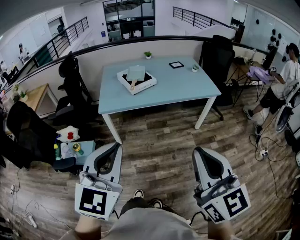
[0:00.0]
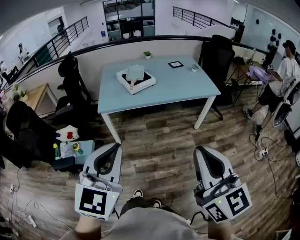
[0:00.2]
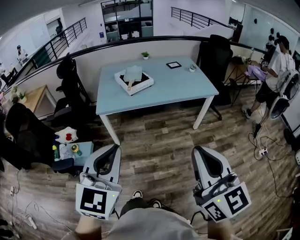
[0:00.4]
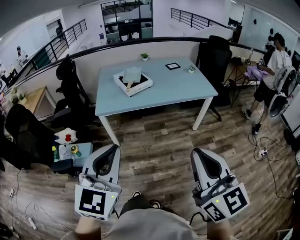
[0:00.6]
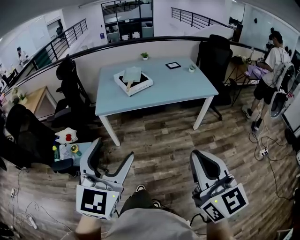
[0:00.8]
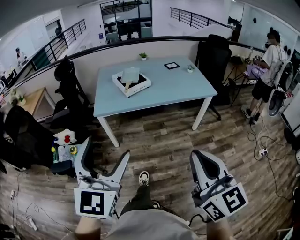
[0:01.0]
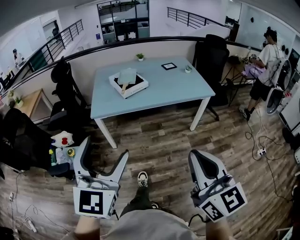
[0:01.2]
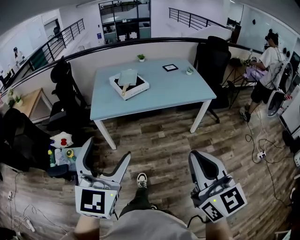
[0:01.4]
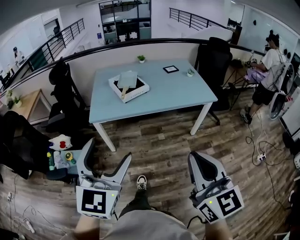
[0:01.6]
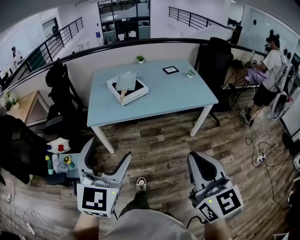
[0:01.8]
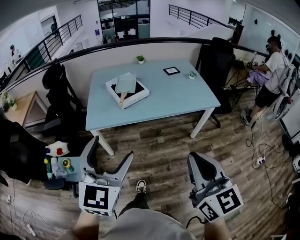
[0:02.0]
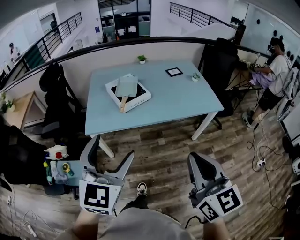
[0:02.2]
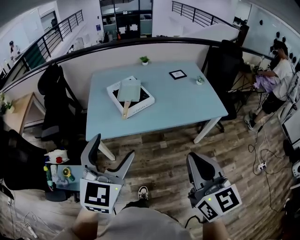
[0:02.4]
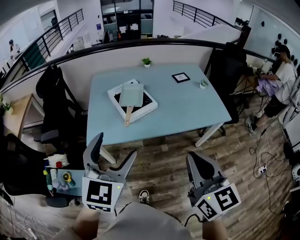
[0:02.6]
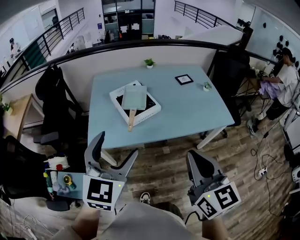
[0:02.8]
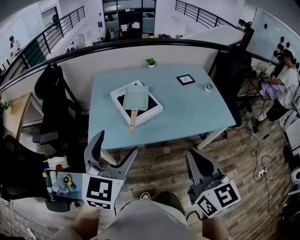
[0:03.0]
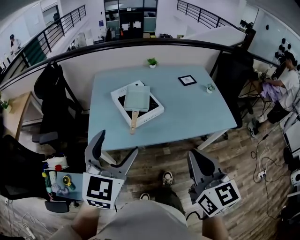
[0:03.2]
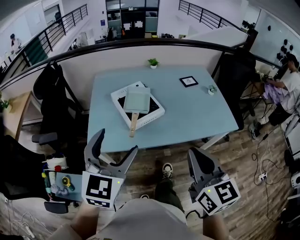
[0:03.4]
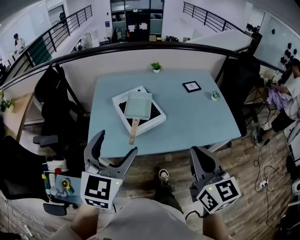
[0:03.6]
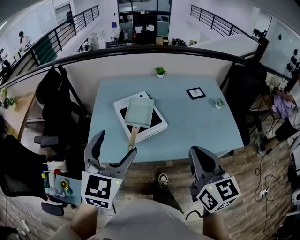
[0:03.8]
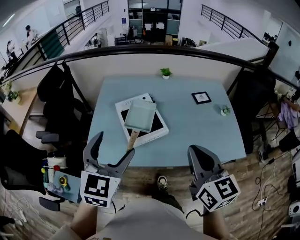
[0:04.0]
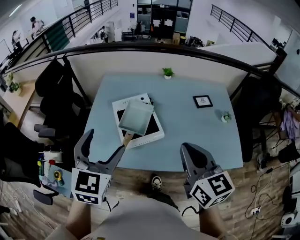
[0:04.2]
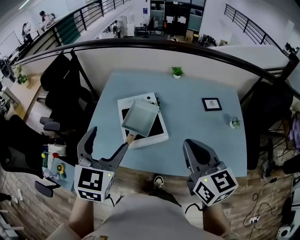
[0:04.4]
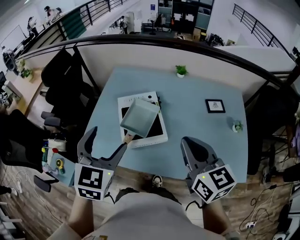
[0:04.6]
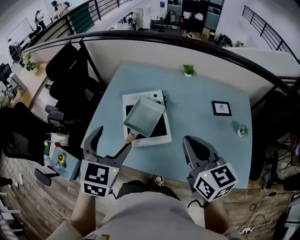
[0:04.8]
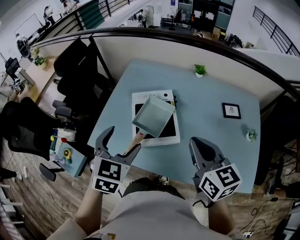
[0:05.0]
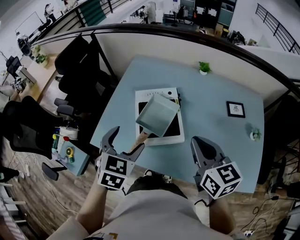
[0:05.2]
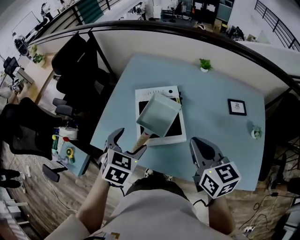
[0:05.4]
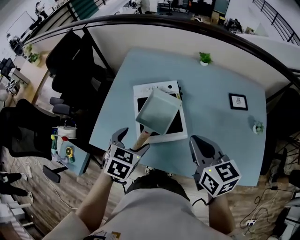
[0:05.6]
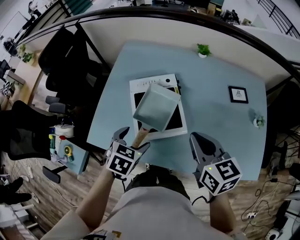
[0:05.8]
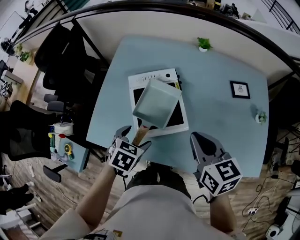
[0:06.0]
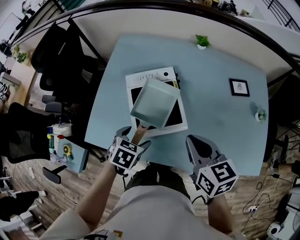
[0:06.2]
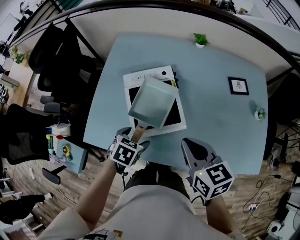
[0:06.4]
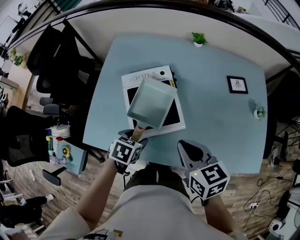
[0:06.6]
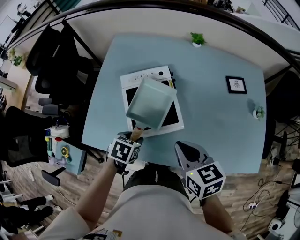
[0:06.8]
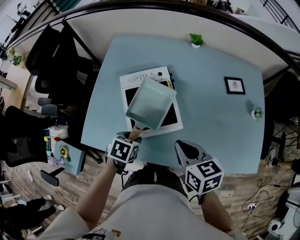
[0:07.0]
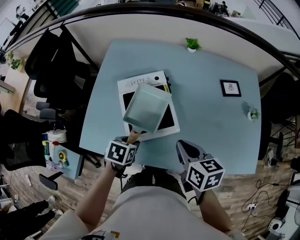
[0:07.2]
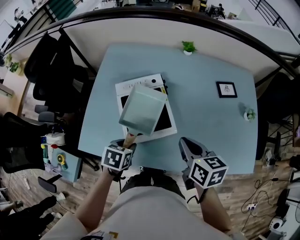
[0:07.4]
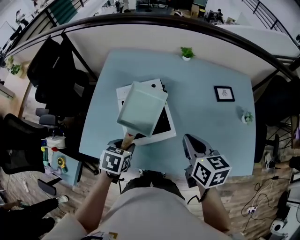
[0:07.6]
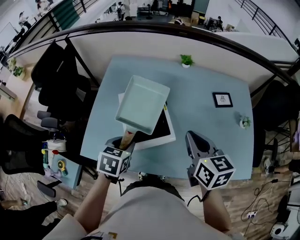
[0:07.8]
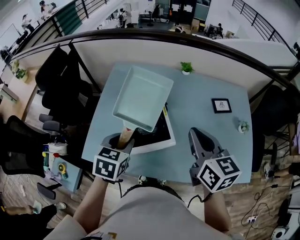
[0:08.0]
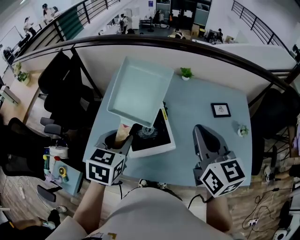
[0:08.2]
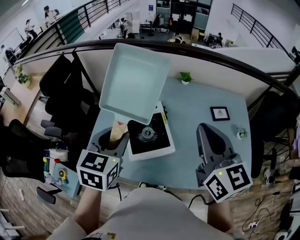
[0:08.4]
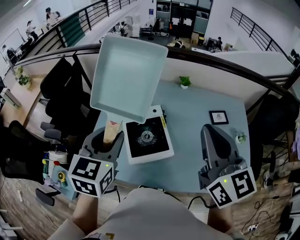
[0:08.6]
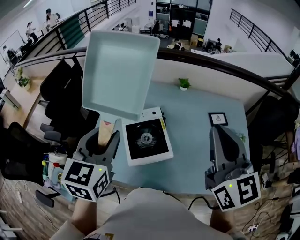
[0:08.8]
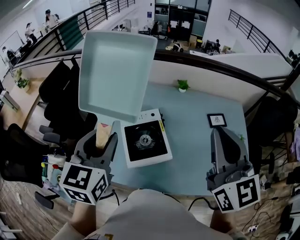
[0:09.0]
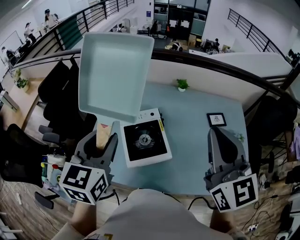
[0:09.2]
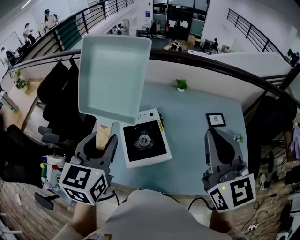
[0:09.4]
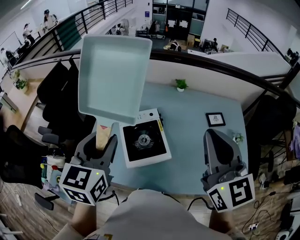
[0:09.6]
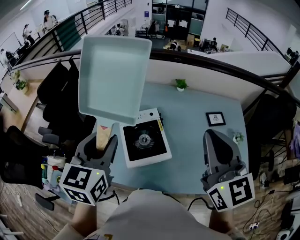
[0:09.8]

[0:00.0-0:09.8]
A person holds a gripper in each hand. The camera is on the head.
0:00.0 to 0:01.4: The right gripper changes place by roughly 5 cm, while the left gripper moves forward, about 5 cm, and opens its fingers.
0:01.4 to 0:02.8: The grippers both shift forward by roughly 35 cm.
0:02.8 to 0:04.2: Both grippers travel together forward, about 25 cm.
0:04.2 to 0:05.6: The right gripper goes approximately 20 cm forward and downward, and swivels approximately 20 degrees. Meanwhile the left gripper heads downward and forward, covering about 25 cm, and points its fingers approximately 30 degrees further downward.
0:05.6 to 0:07.0: The grippers both shift downward by roughly 10 cm. The left gripper rotates approximately 20 degrees, and closes up.
0:07.0 to 0:08.4: The two grippers go some 30 cm upward. The right gripper points its fingers roughly 30 degrees further upward. The left gripper points its fingers roughly 40 degrees further upward.
0:08.4 to 0:09.8: The left gripper goes some 5 cm upward.

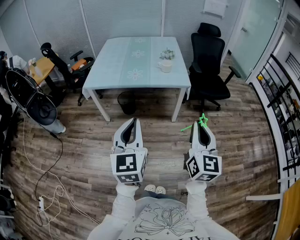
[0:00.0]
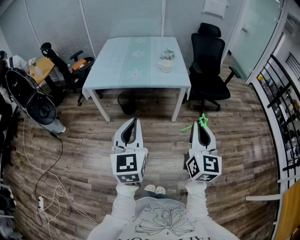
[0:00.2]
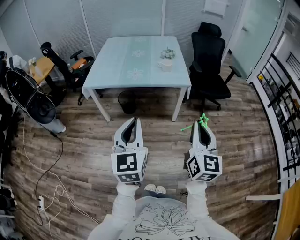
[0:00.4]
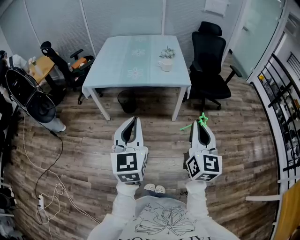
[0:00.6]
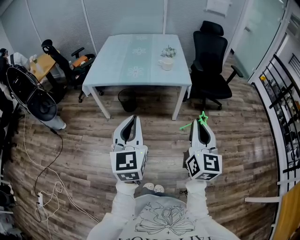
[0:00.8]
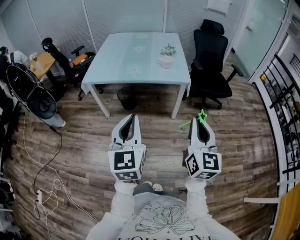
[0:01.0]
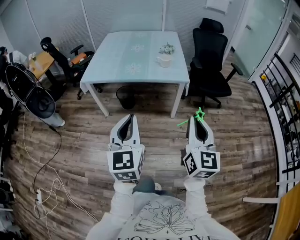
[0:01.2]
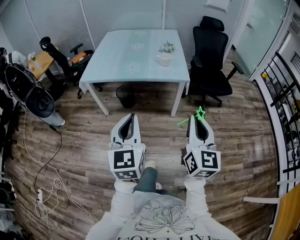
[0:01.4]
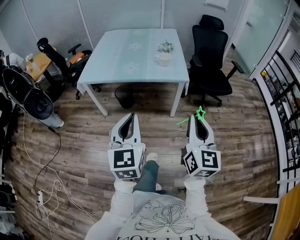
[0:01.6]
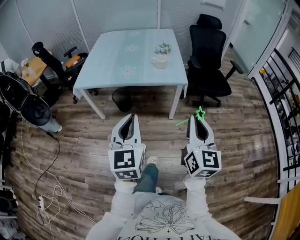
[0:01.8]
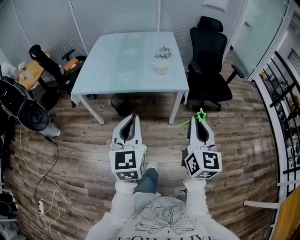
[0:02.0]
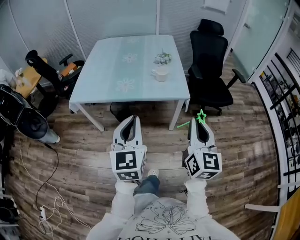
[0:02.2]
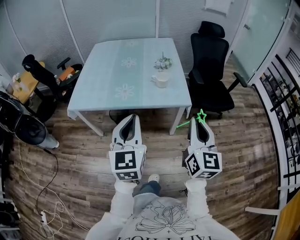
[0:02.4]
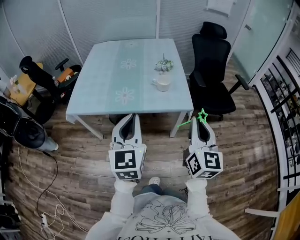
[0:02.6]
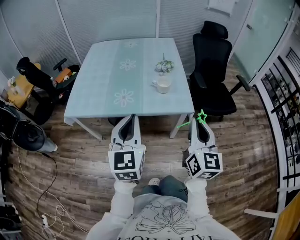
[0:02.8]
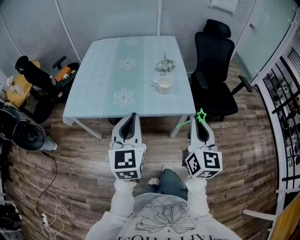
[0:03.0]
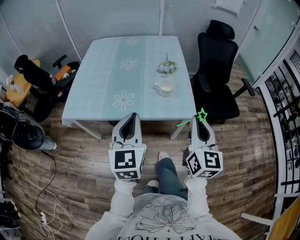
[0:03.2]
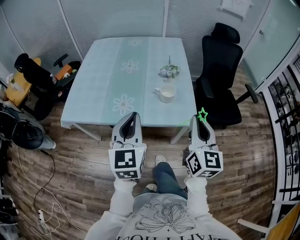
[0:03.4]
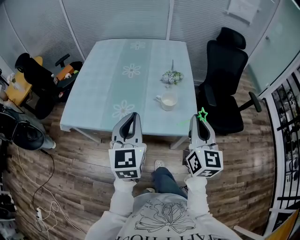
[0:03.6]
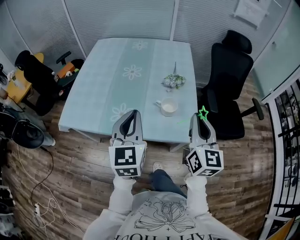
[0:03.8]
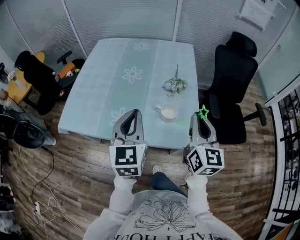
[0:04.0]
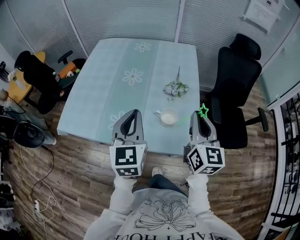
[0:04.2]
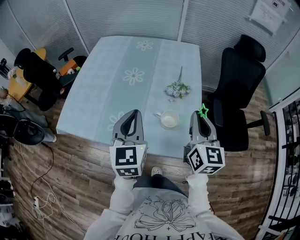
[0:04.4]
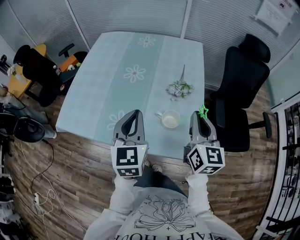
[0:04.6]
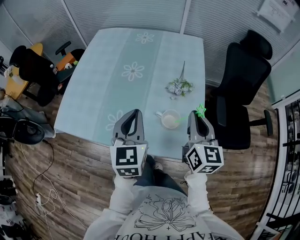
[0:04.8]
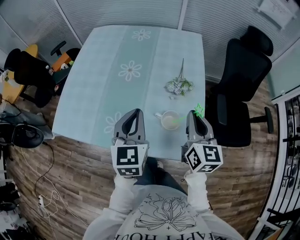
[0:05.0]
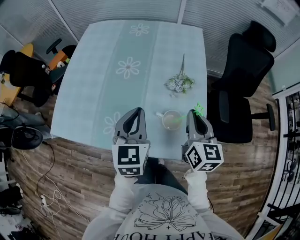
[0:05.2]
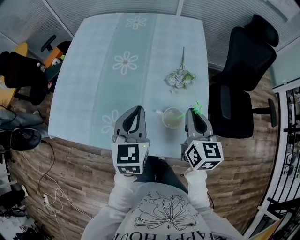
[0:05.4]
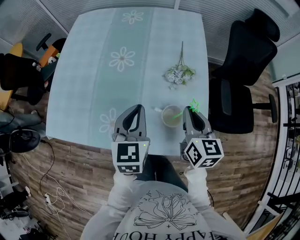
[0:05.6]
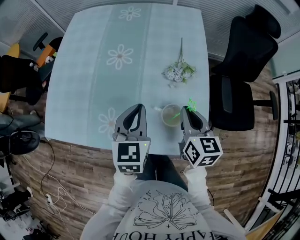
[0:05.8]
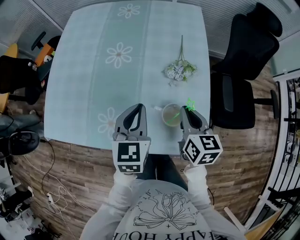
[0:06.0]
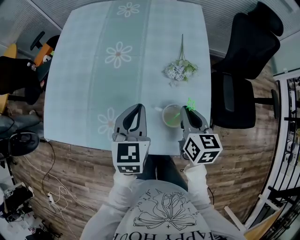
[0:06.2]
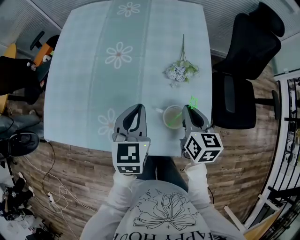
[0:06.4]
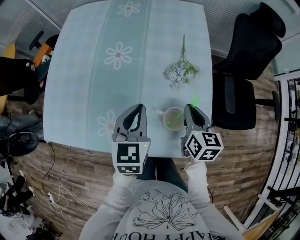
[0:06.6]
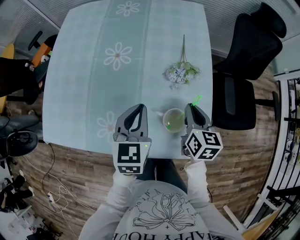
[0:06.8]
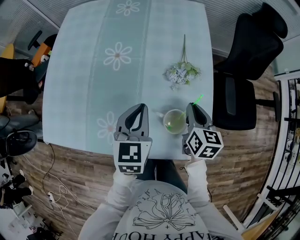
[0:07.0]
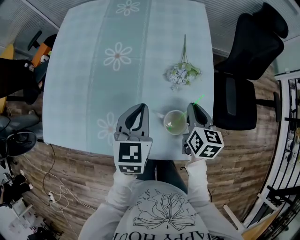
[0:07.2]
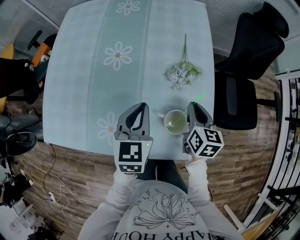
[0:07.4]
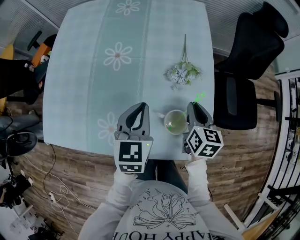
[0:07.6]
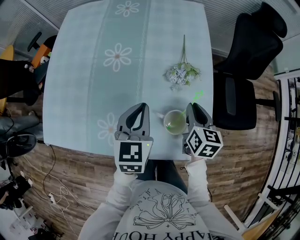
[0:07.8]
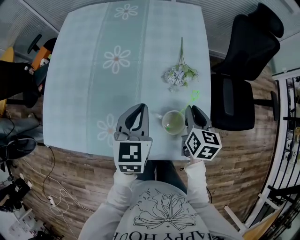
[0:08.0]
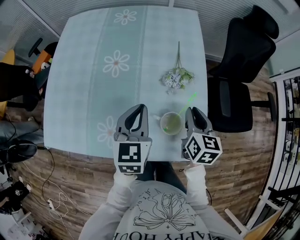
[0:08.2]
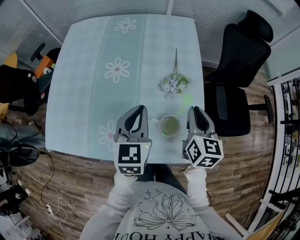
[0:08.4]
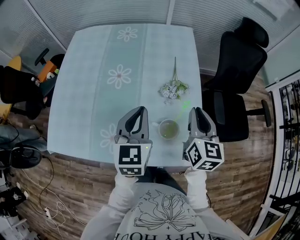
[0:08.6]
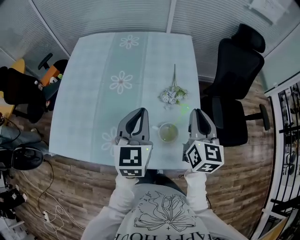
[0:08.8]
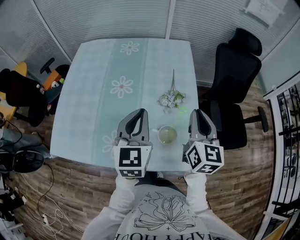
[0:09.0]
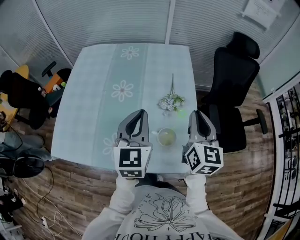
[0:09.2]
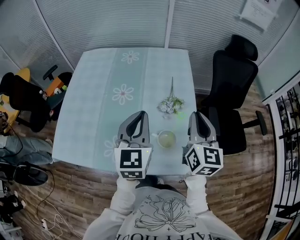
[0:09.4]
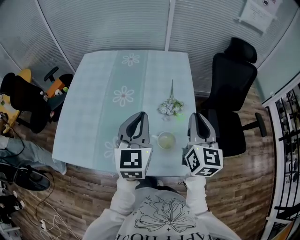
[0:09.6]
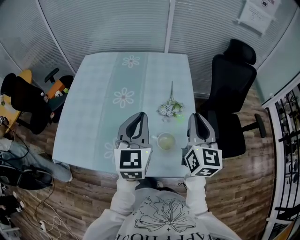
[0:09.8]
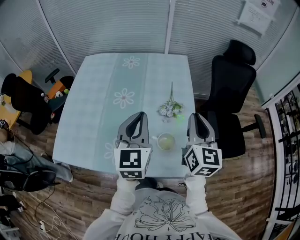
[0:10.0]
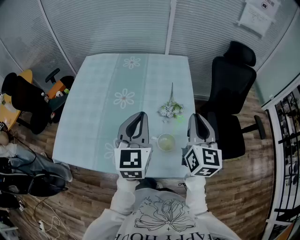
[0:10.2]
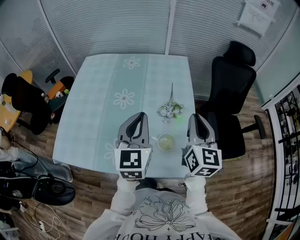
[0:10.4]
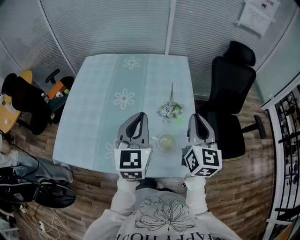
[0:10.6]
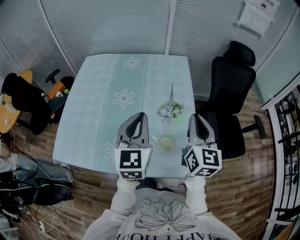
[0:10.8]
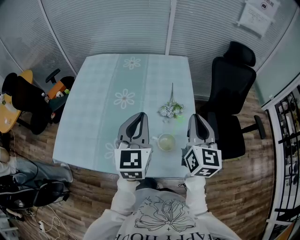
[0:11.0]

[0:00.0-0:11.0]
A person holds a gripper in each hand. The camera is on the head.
0:00.0 to 0:01.6: The right gripper moves some 5 cm. The left gripper changes place by some 5 cm.
0:01.6 to 0:03.2: The grippers both shift forward by some 40 cm.
0:03.2 to 0:04.8: The grippers both shift forward by some 35 cm.
0:04.8 to 0:06.2: The grippers both shift downward and forward by approximately 15 cm. The right gripper turns by approximately 20 degrees.
0:06.2 to 0:07.8: The right gripper ends up approximately 5 cm from where it was.
0:07.8 to 0:09.4: Both grippers move upward, some 20 cm. The left gripper turns by roughly 20 degrees. The right gripper rotates about 30 degrees.
0:09.4 to 0:11.0: There are only small adjustments of the grippers.

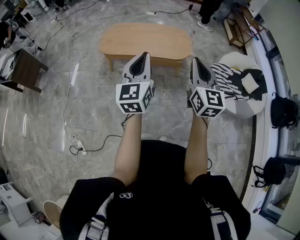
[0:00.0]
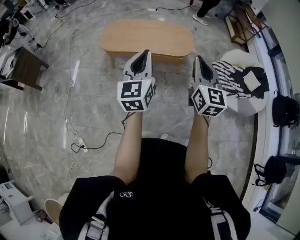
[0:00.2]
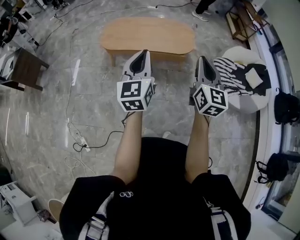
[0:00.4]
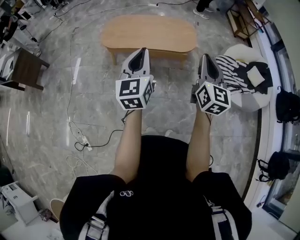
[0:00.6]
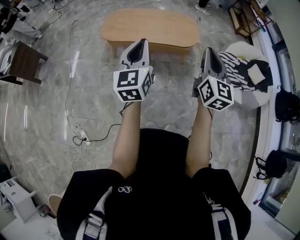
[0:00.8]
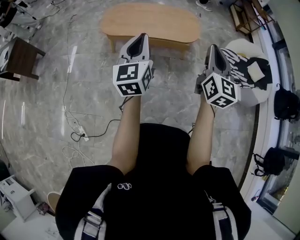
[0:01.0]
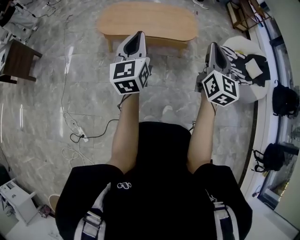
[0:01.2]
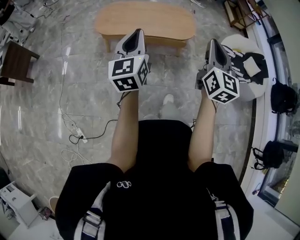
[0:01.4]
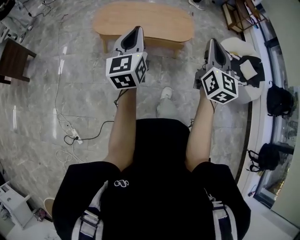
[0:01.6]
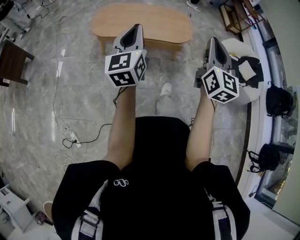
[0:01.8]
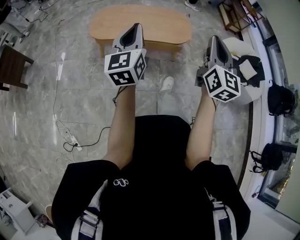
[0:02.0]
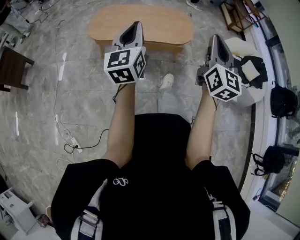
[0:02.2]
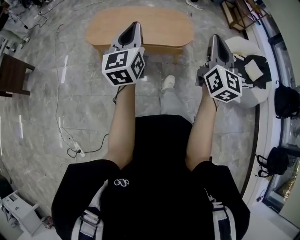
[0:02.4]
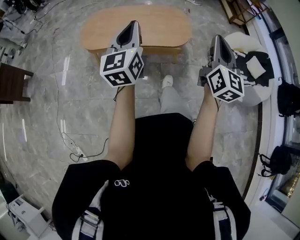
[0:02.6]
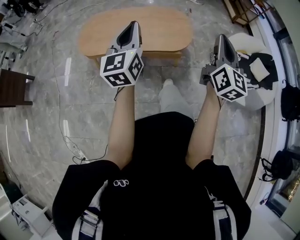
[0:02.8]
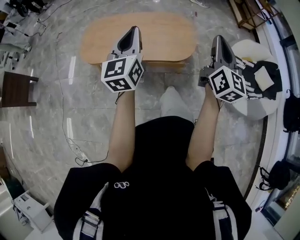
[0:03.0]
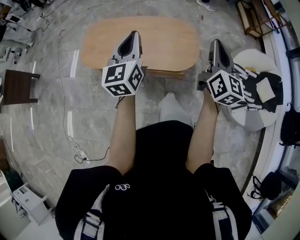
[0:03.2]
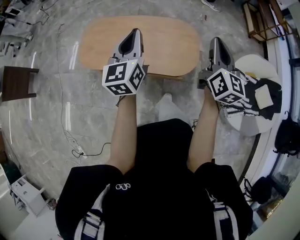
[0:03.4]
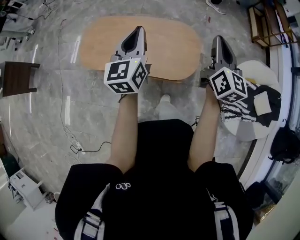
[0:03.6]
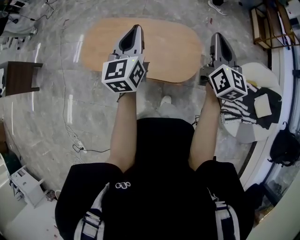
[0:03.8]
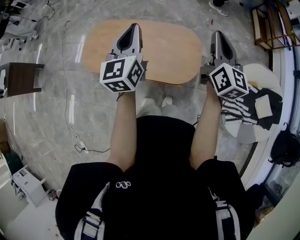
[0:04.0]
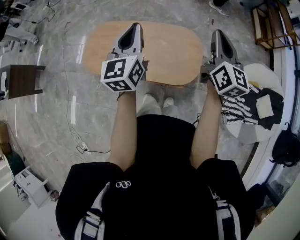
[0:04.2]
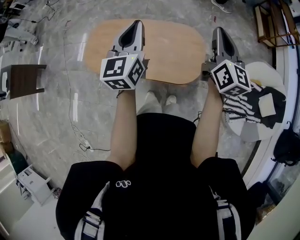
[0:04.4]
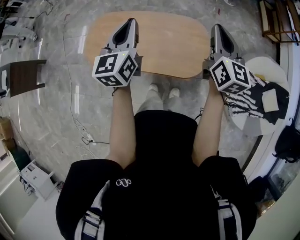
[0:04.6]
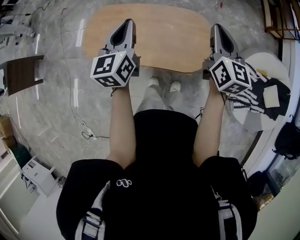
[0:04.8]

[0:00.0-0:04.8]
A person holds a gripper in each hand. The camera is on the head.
0:00.0 to 0:01.6: The left gripper goes some 10 cm to the left and forward.
0:01.6 to 0:03.2: The pair of grippers is taken forward, about 40 cm.
0:03.2 to 0:04.8: Both grippers travel together forward, roughly 20 cm.
